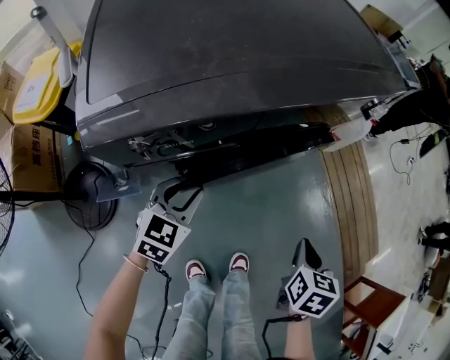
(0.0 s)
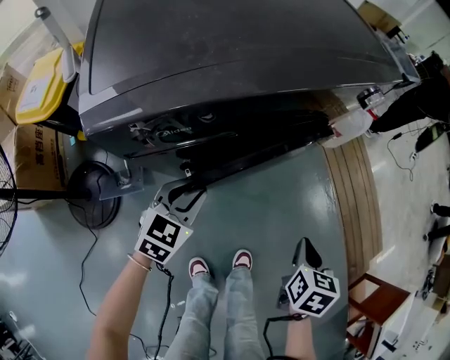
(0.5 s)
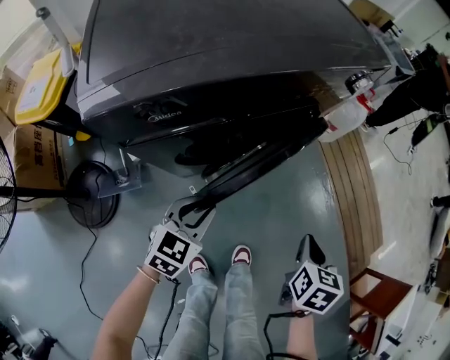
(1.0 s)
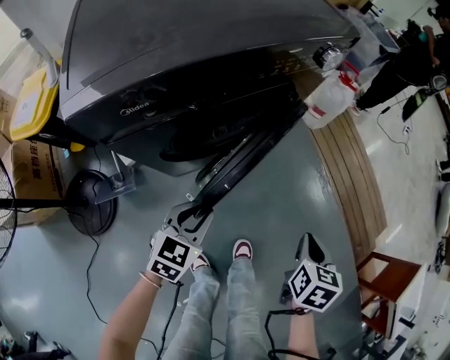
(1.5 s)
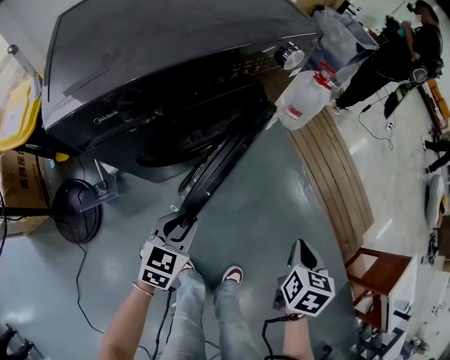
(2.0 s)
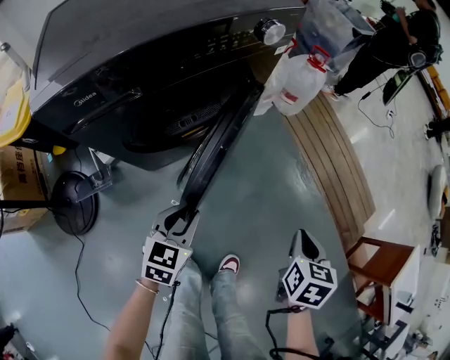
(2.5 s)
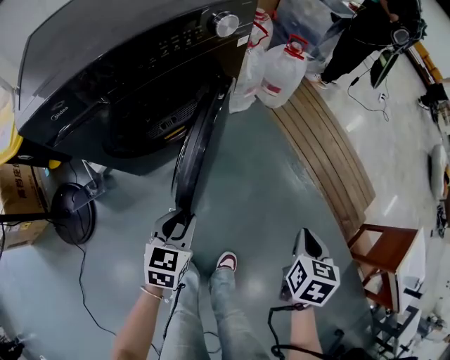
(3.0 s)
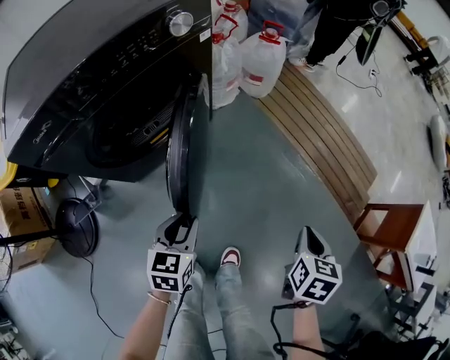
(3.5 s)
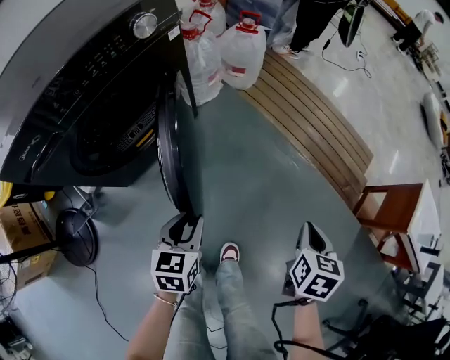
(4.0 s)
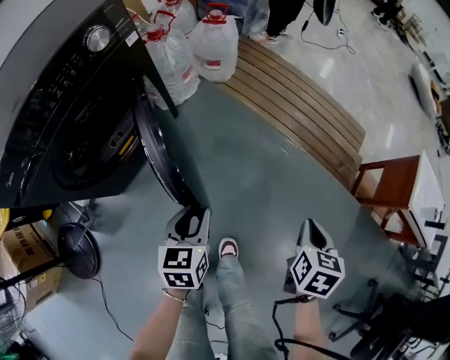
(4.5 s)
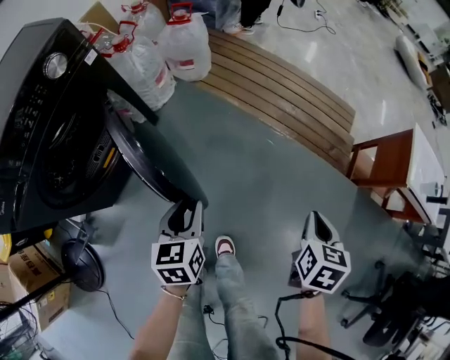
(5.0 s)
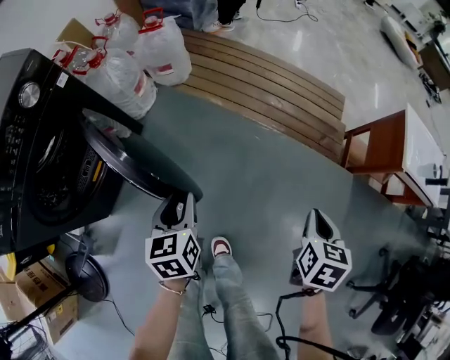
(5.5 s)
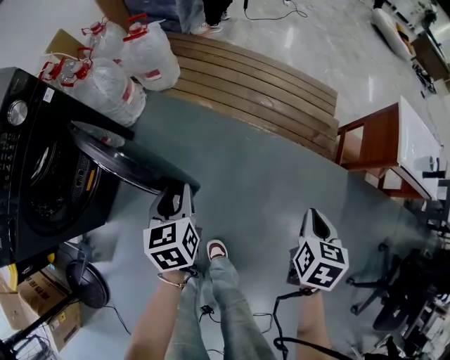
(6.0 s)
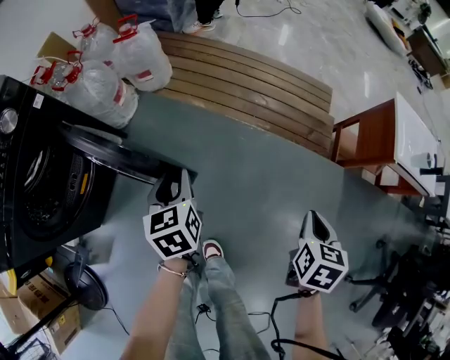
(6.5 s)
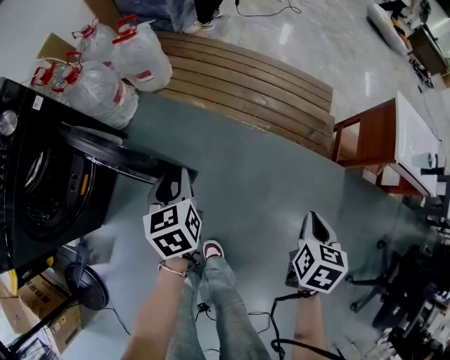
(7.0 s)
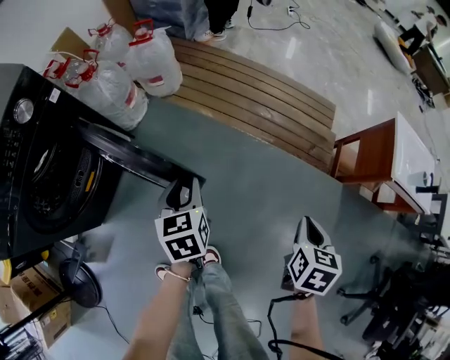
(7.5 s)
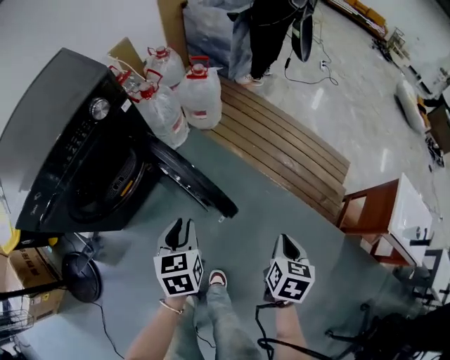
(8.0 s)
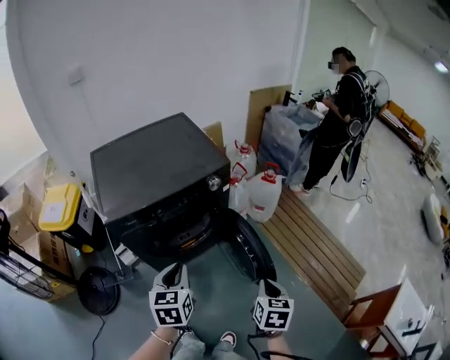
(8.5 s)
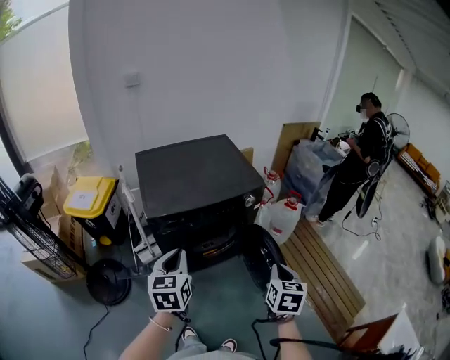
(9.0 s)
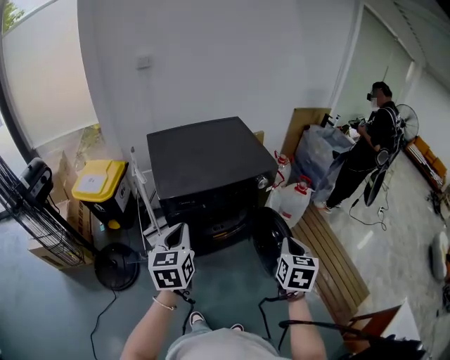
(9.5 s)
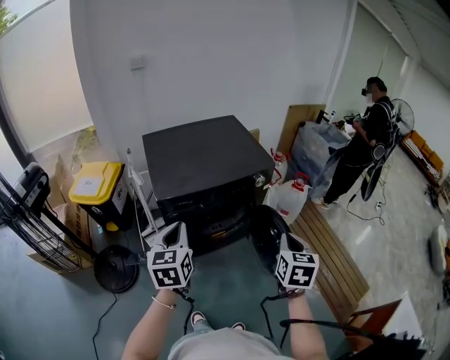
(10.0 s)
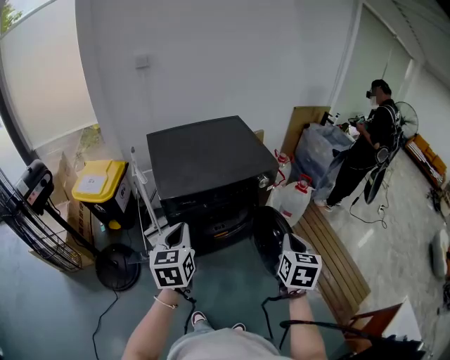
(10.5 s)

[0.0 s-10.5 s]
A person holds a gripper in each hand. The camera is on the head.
0.0 to 2.0 s: Both grippers travel together to the right and backward, roughly 15 cm.
2.0 to 4.0 s: Both grippers travel together to the right, roughly 20 cm.
4.0 to 6.5 s: The left gripper shifts some 25 cm forward and to the right; the right gripper is displaced to the right by approximately 20 cm, and turns by roughly 20 degrees.
6.5 to 8.5 s: The left gripper moves some 50 cm, and turns by roughly 30 degrees. The right gripper shifts by about 40 cm, and rotates approximately 50 degrees.
8.5 to 10.5 s: The left gripper goes approximately 20 cm to the left and upward. The right gripper travels upward and to the left by about 20 cm.

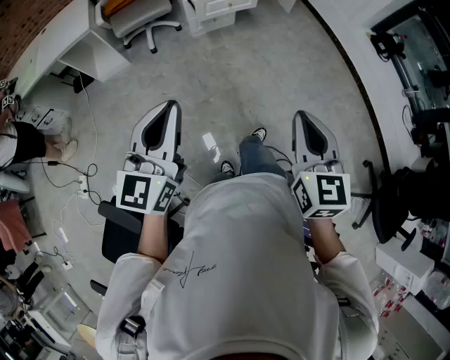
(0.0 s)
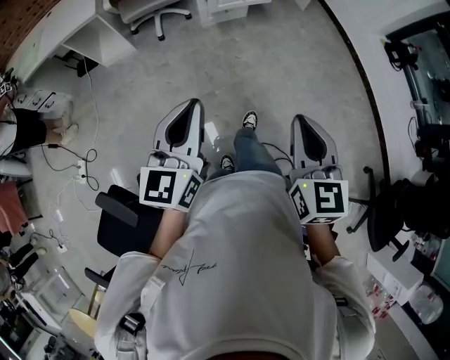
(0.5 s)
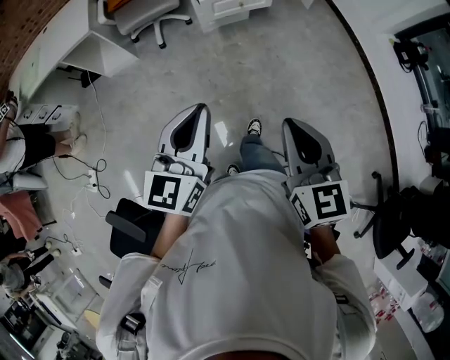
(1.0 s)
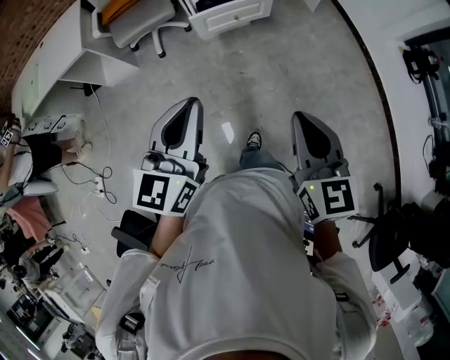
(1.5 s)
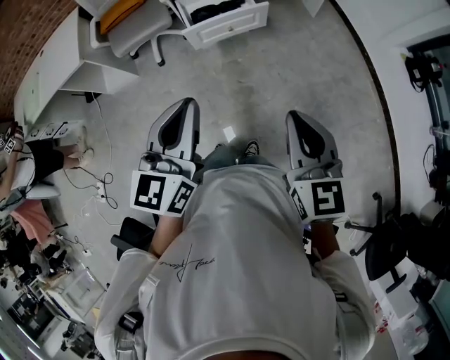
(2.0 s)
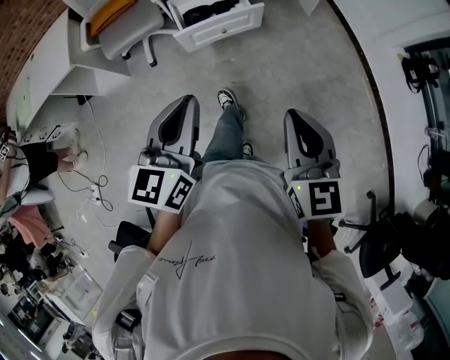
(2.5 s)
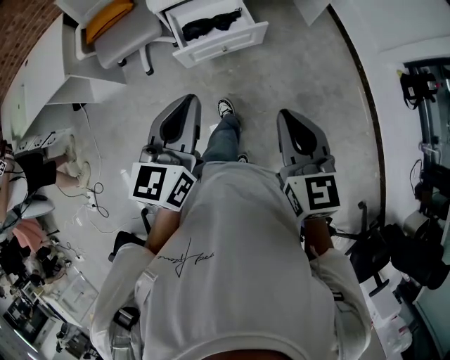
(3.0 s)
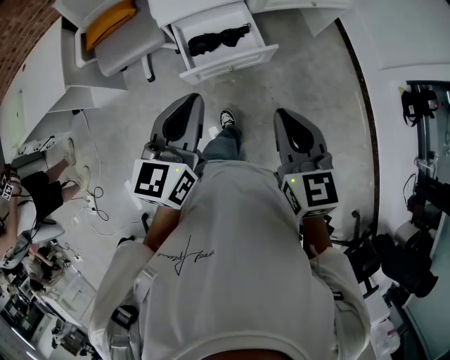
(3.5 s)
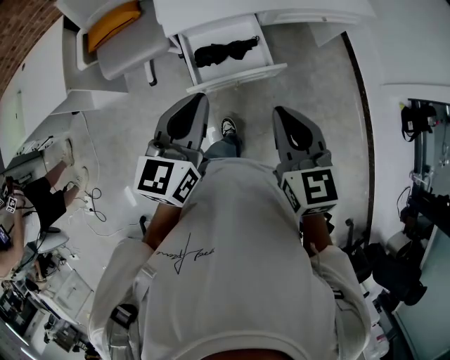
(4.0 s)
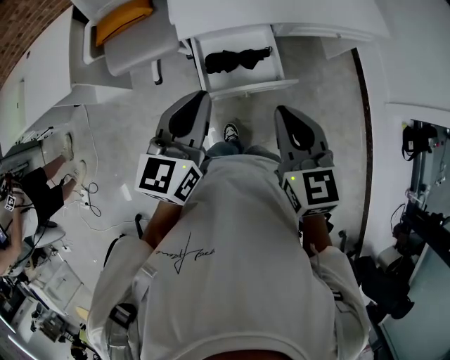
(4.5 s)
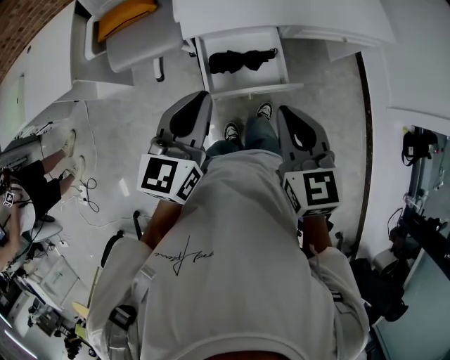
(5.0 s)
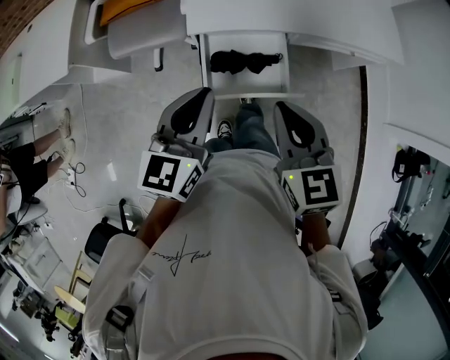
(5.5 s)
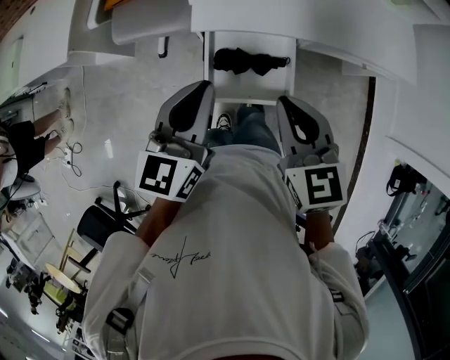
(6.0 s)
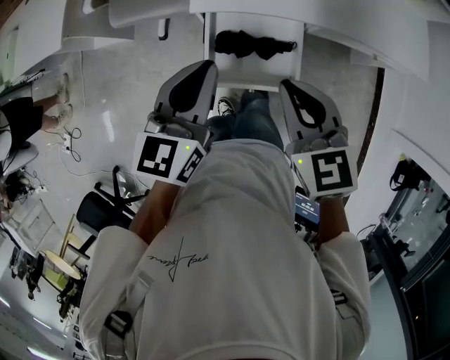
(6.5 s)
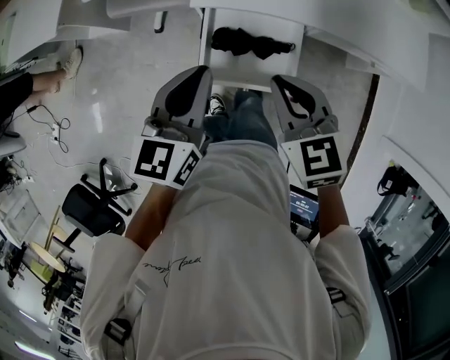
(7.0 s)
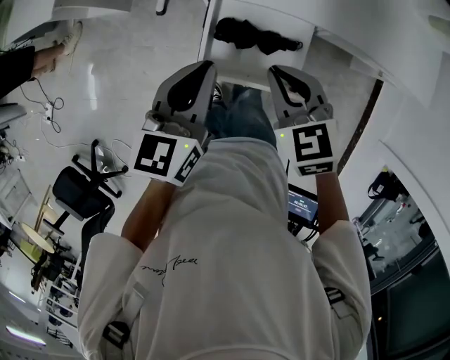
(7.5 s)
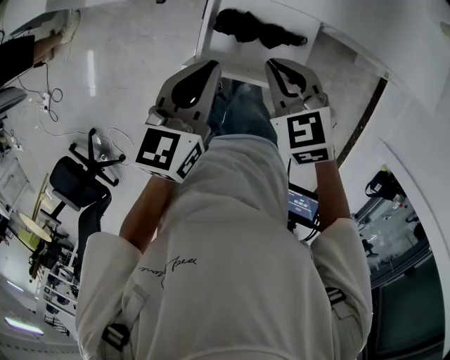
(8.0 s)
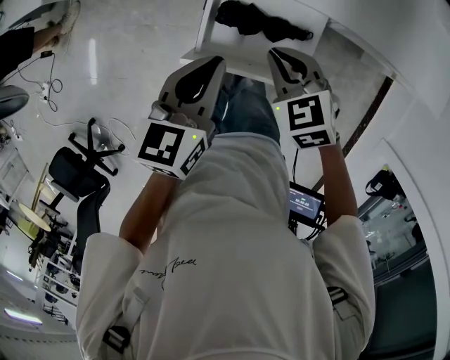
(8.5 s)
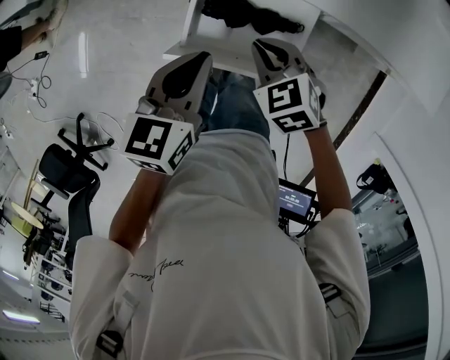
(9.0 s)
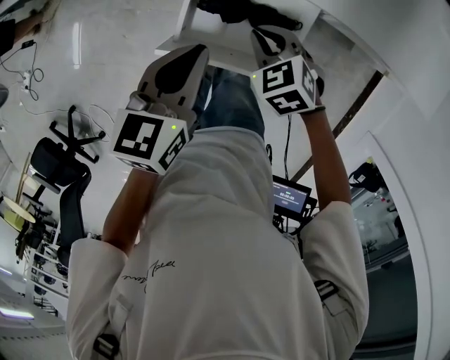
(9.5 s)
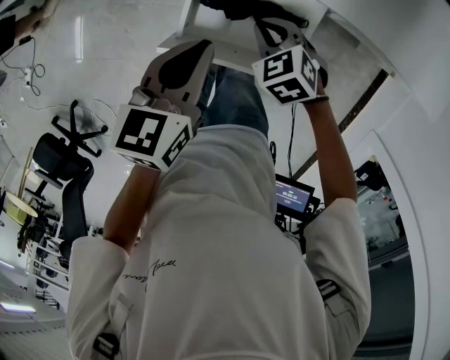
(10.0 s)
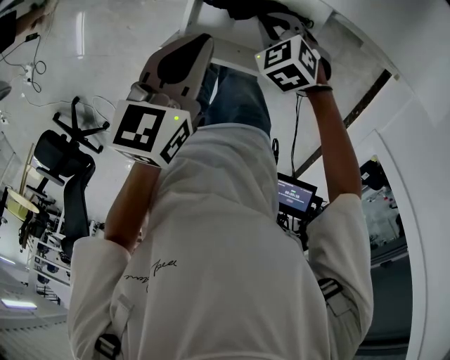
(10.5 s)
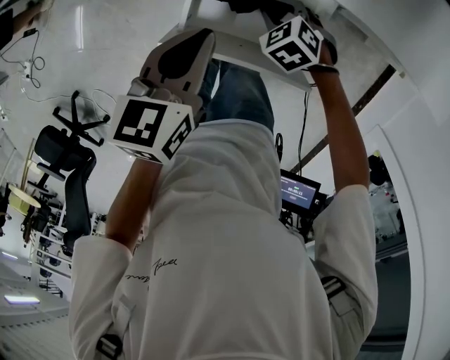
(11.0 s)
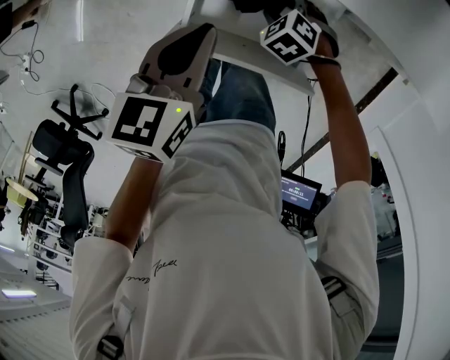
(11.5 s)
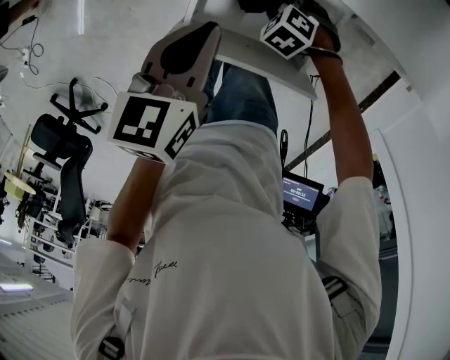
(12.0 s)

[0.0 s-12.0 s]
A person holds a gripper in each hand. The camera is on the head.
0.0 to 2.0 s: The right gripper is displaced forward by some 30 cm; the left gripper shifts about 35 cm forward and to the right.
2.0 to 4.0 s: The grippers both shift forward by some 30 cm.
4.0 to 6.0 s: Both grippers move forward, some 15 cm. The right gripper changes its angle by approximately 20 degrees.
6.0 to 8.0 s: The grippers both shift downward by some 15 cm. The right gripper turns by some 30 degrees.
8.0 to 10.0 s: The left gripper heads downward, covering about 5 cm. The right gripper heads downward, covering approximately 15 cm.
10.0 to 12.0 s: The right gripper is displaced downward by some 15 cm, changes its angle by approximately 20 degrees, and opens.

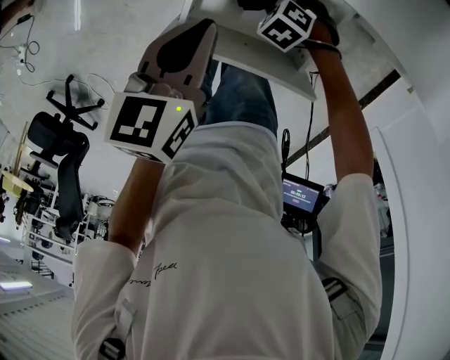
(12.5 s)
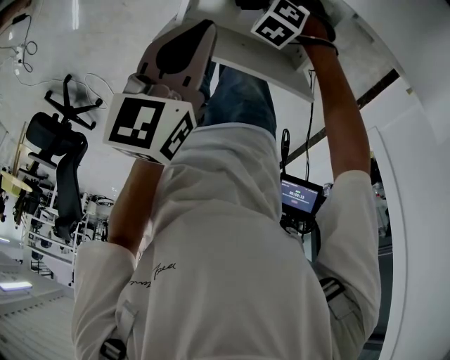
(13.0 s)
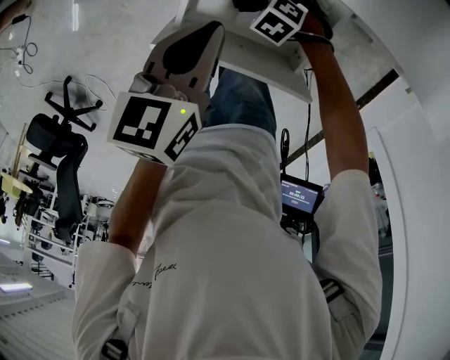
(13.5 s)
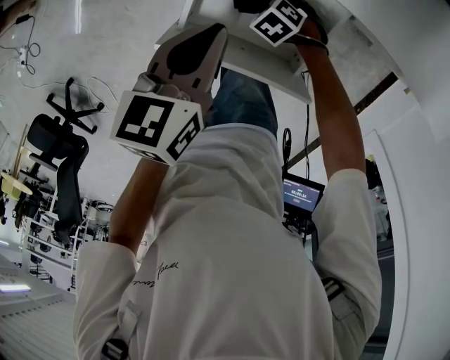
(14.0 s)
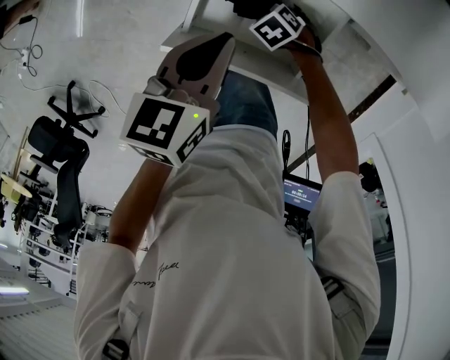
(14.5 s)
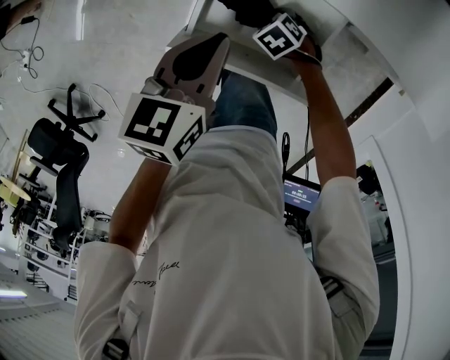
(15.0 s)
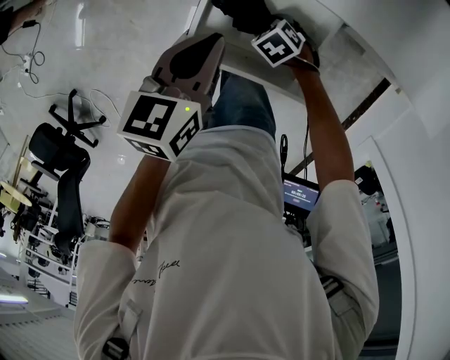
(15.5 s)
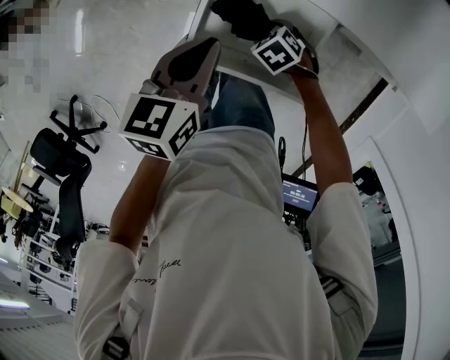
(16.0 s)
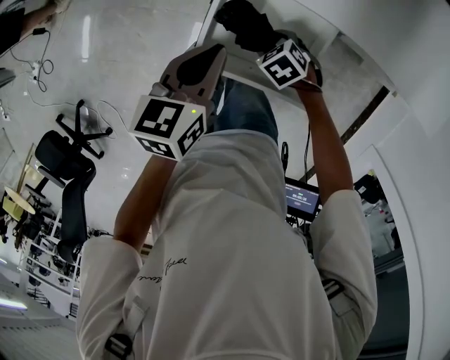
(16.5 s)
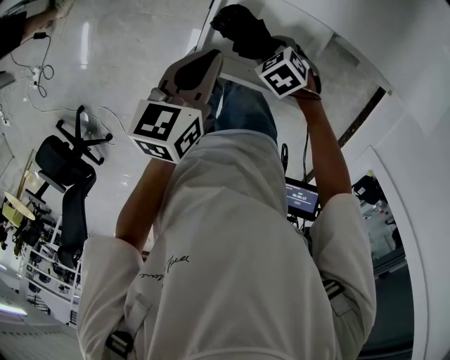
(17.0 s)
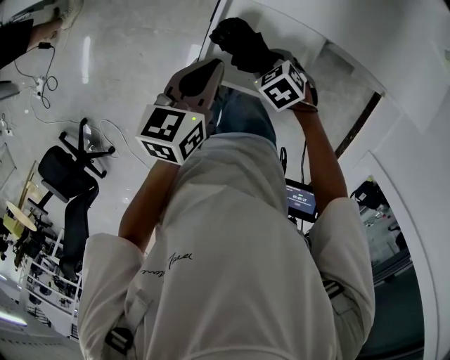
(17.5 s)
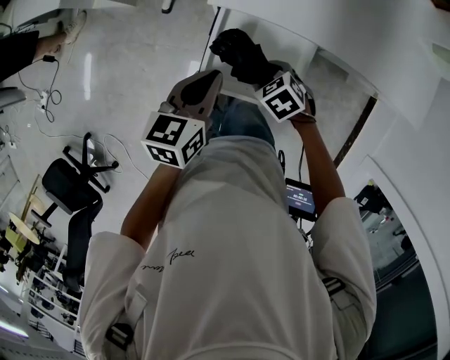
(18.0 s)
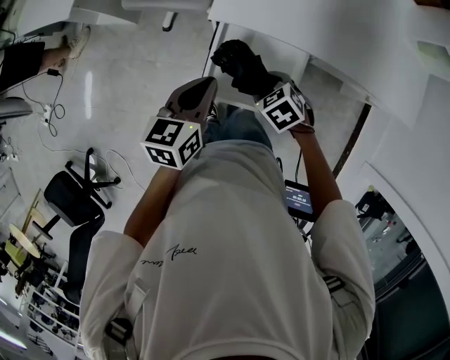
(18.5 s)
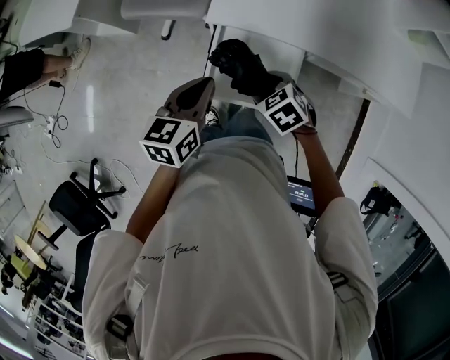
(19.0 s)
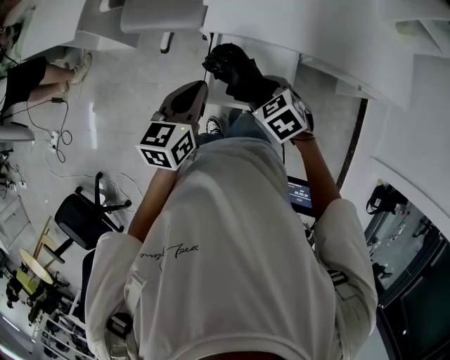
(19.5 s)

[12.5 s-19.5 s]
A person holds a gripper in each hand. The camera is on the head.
12.5 to 14.5 s: The grippers move only a little.
14.5 to 16.0 s: The right gripper is displaced upward by approximately 5 cm.
16.0 to 17.5 s: The right gripper moves upward, approximately 10 cm.
17.5 to 19.5 s: The left gripper moves upward and to the left, approximately 10 cm. The right gripper moves upward, some 15 cm.
